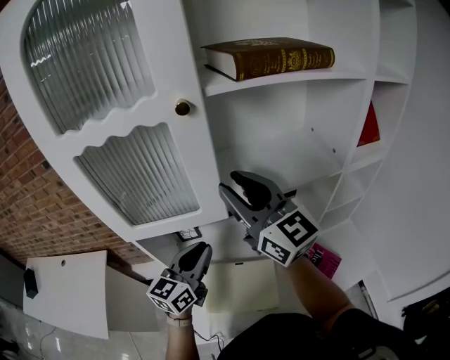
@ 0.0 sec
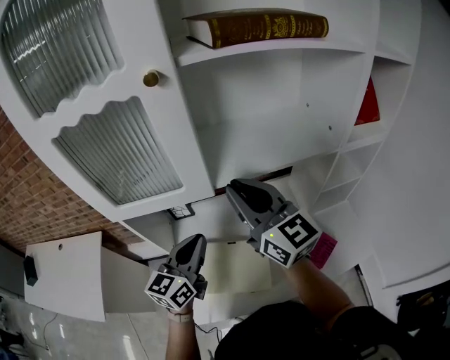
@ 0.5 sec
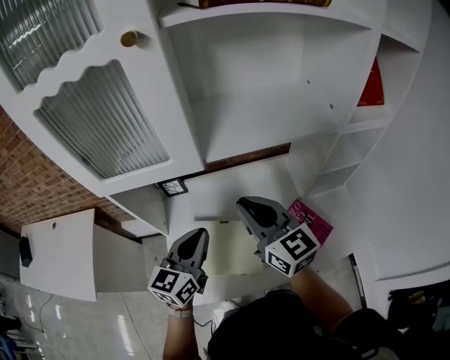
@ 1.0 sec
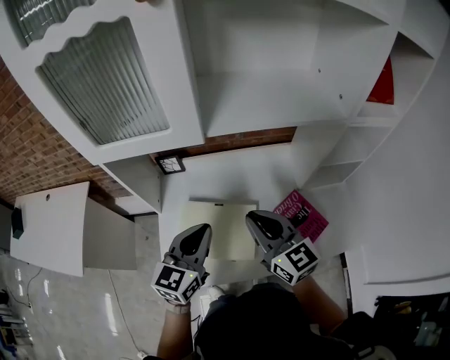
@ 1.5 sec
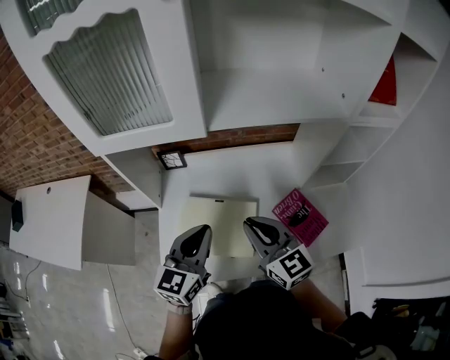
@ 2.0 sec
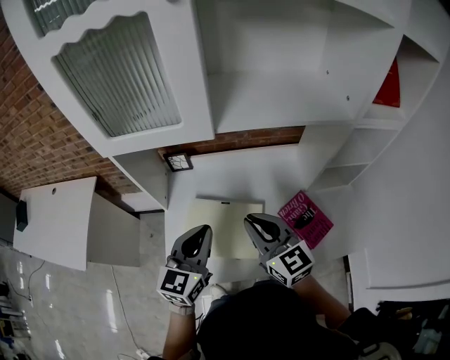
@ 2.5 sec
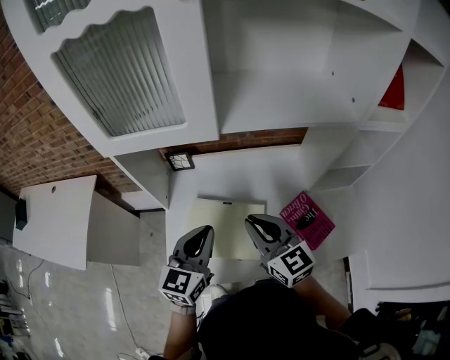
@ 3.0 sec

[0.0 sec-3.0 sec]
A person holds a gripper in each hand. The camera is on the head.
0.0 sec to 1.5 sec: The left gripper travels backward, downward and to the right by roughly 15 cm, while the right gripper heads downward and backward, covering about 30 cm, changes its angle by some 20 degrees, and closes its fingers.
1.5 sec to 3.0 sec: The grippers make only small movements.

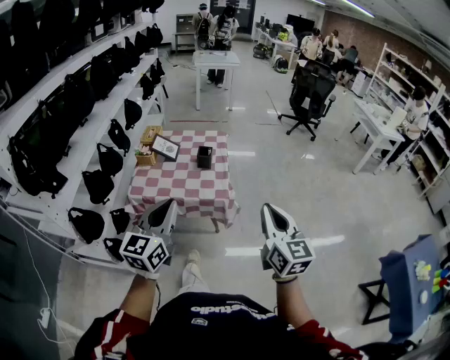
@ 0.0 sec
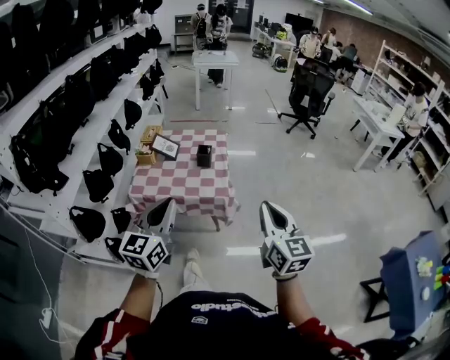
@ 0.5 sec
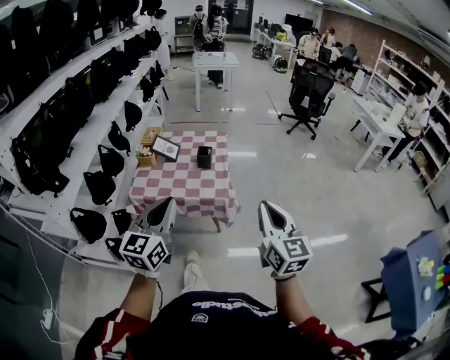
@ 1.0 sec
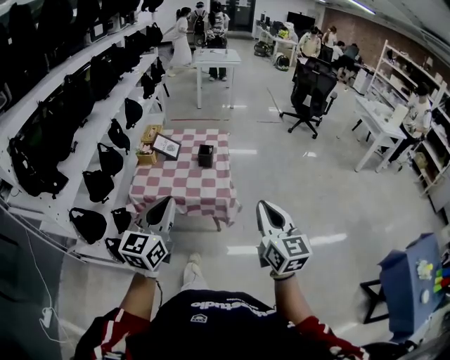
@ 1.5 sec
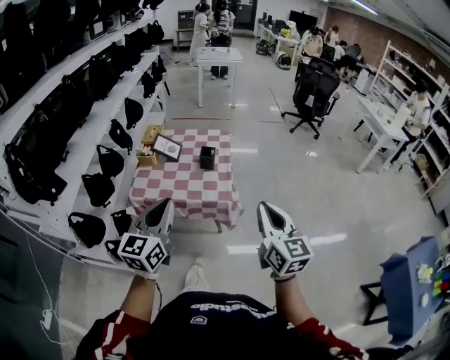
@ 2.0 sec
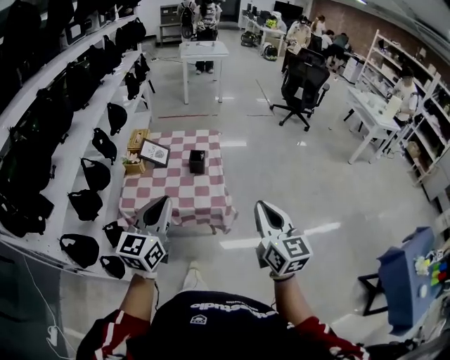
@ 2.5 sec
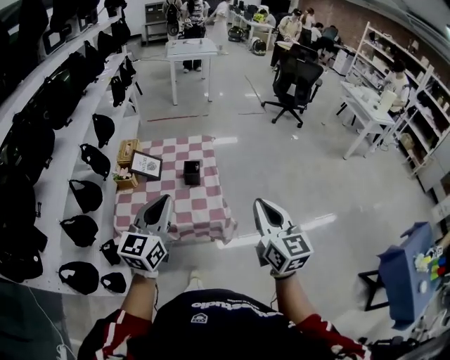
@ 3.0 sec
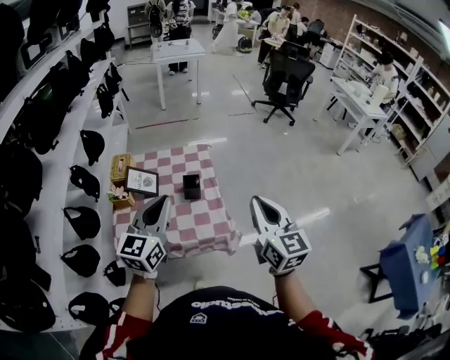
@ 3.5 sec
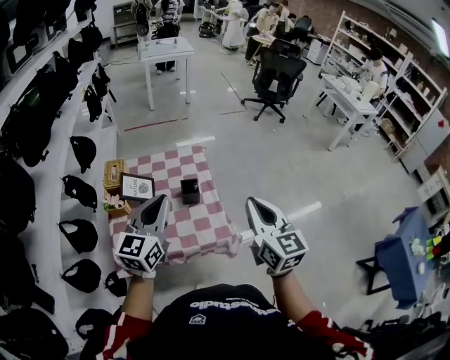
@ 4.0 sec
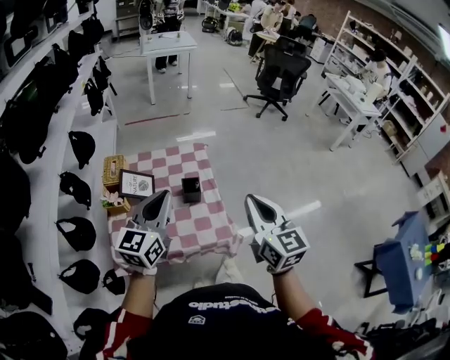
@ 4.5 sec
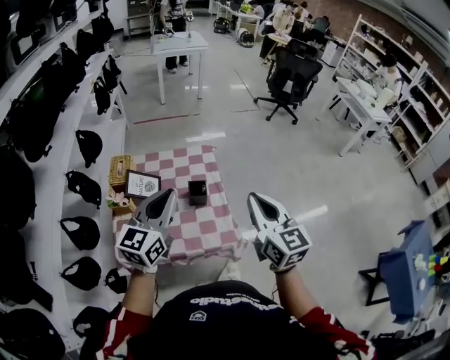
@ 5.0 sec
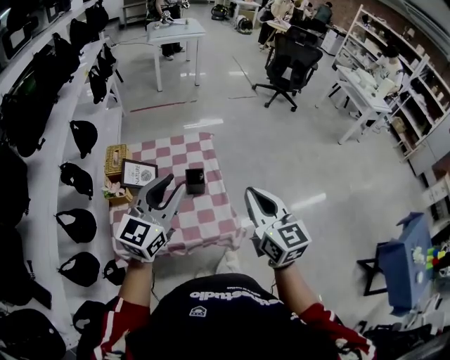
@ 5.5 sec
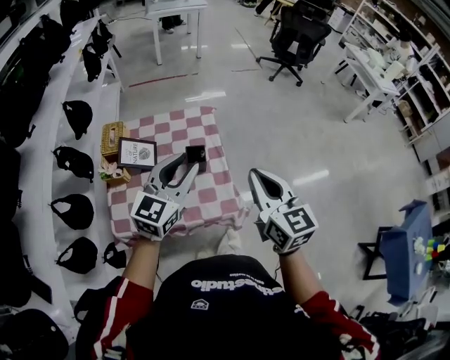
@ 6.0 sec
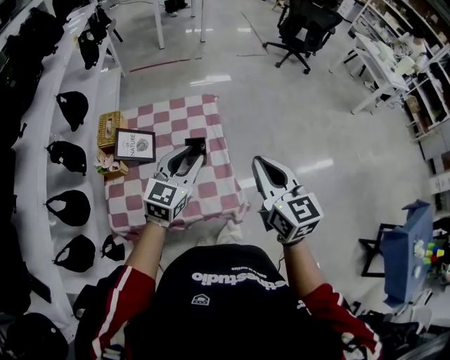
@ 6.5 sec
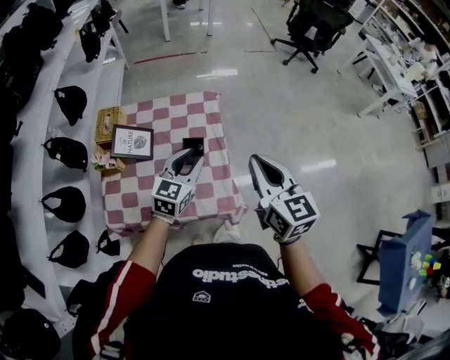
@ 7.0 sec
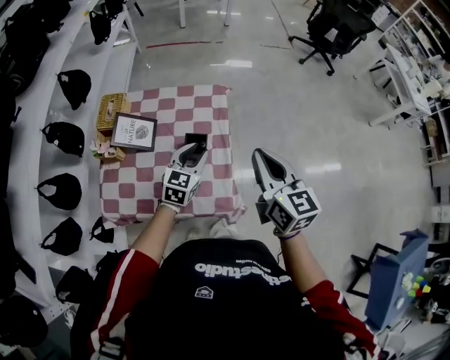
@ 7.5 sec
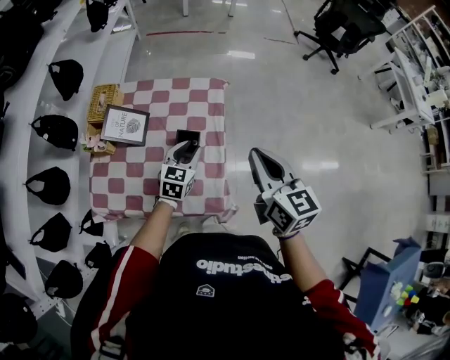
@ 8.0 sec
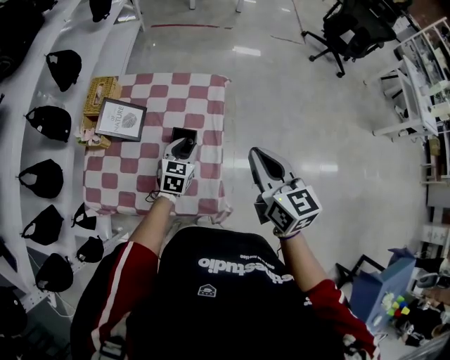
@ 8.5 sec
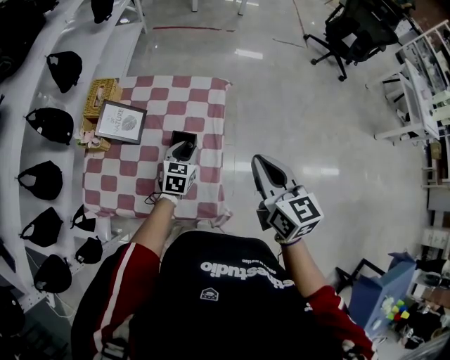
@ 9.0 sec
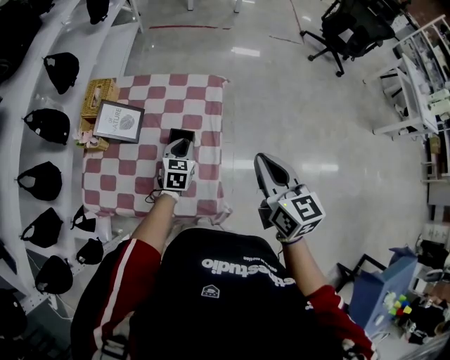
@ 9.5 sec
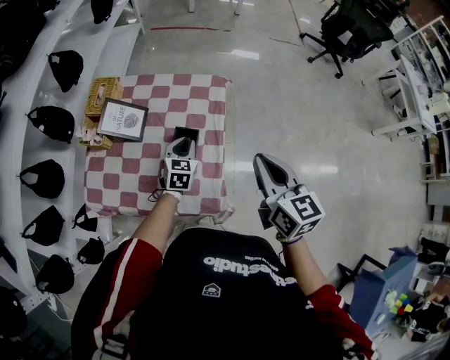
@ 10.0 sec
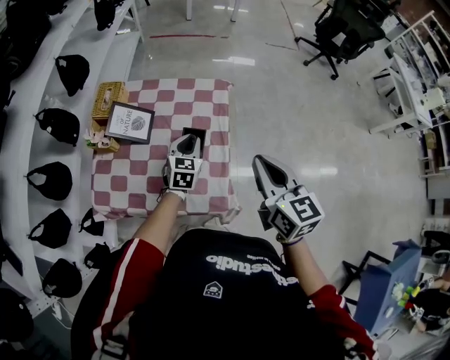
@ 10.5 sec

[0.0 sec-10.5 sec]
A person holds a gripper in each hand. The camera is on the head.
0.0 sec to 2.0 sec: There are only small adjustments of the grippers.
2.0 sec to 4.0 sec: Both grippers travel together forward, about 30 cm.
4.0 sec to 6.5 sec: The right gripper is displaced forward and downward by roughly 10 cm. Meanwhile the left gripper travels forward, downward and to the right by some 20 cm, and opens up.
6.5 sec to 8.5 sec: The right gripper goes some 15 cm forward and downward; the left gripper is displaced downward and forward by some 25 cm, and swivels some 30 degrees.
8.5 sec to 10.5 sec: The right gripper moves some 5 cm.

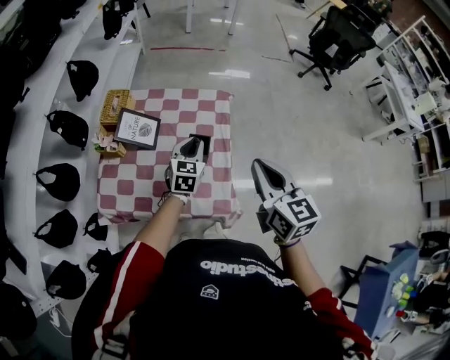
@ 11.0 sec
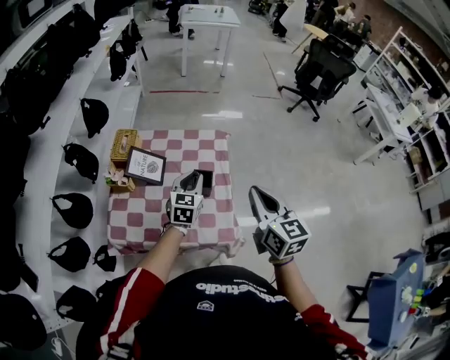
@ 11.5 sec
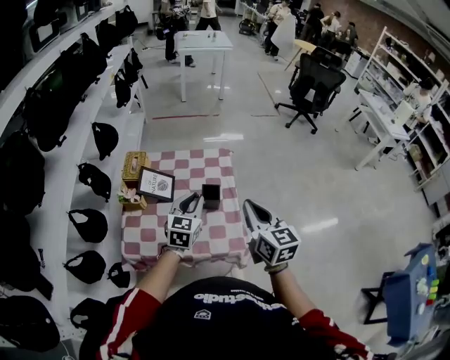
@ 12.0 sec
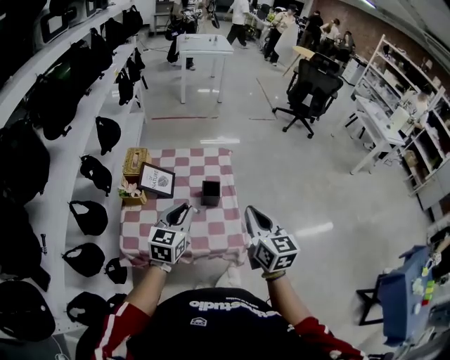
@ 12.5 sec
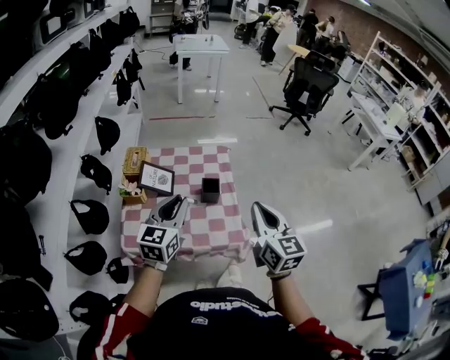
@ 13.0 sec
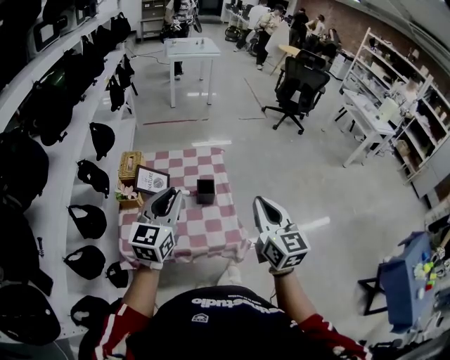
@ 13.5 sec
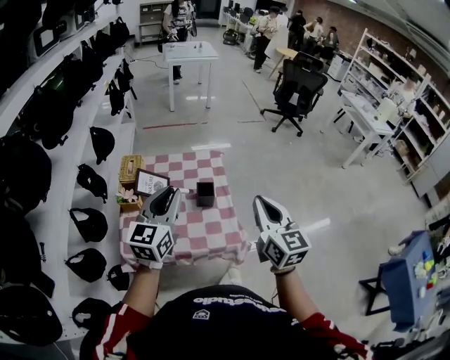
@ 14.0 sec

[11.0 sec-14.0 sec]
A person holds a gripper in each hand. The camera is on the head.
11.0 sec to 12.5 sec: The right gripper moves backward and to the left, about 10 cm; the left gripper shifts about 25 cm backward, upward and to the left.
12.5 sec to 14.0 sec: The left gripper moves upward, some 15 cm. Meanwhile the right gripper travels upward by some 5 cm.

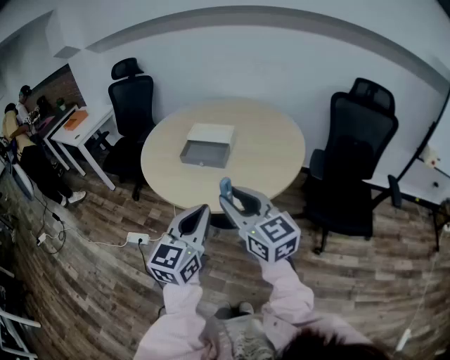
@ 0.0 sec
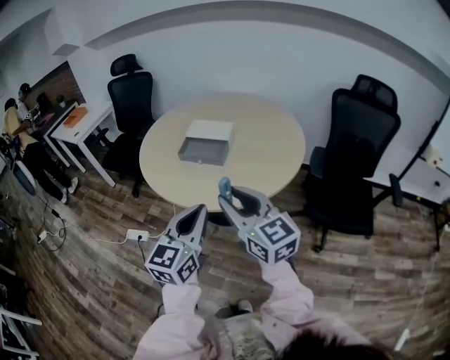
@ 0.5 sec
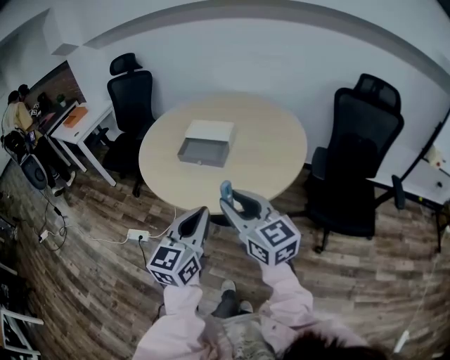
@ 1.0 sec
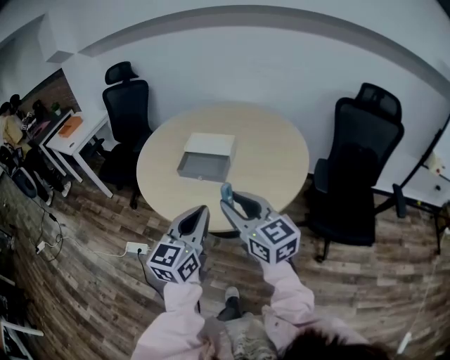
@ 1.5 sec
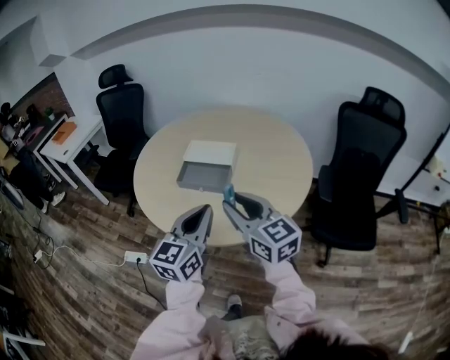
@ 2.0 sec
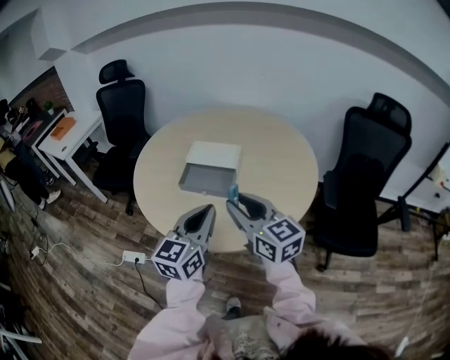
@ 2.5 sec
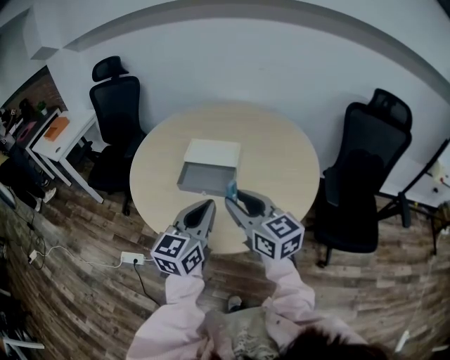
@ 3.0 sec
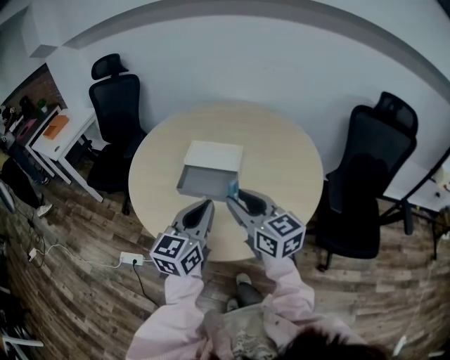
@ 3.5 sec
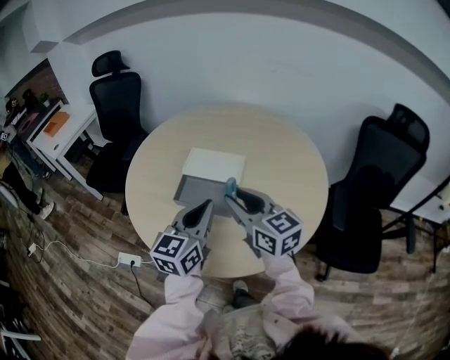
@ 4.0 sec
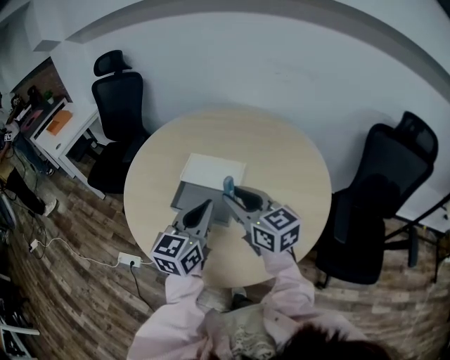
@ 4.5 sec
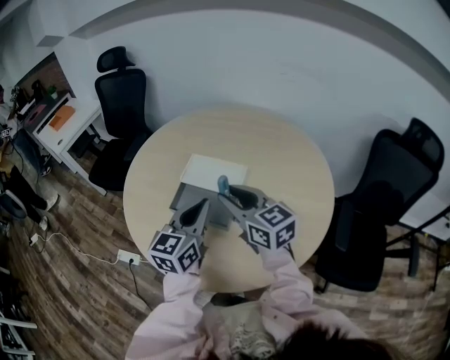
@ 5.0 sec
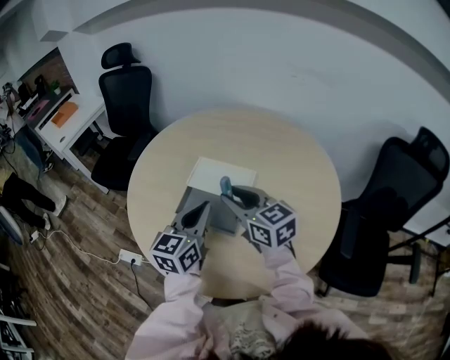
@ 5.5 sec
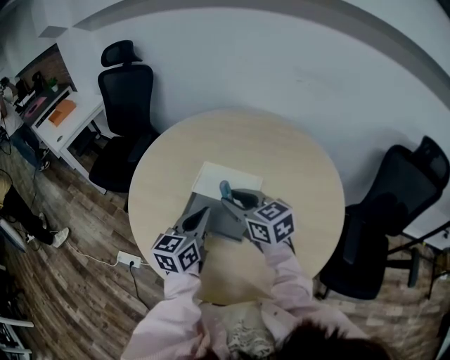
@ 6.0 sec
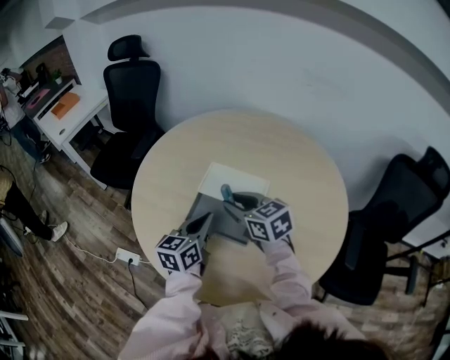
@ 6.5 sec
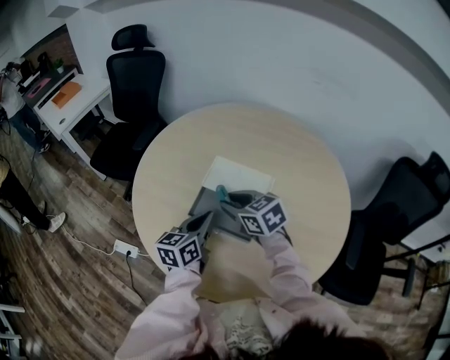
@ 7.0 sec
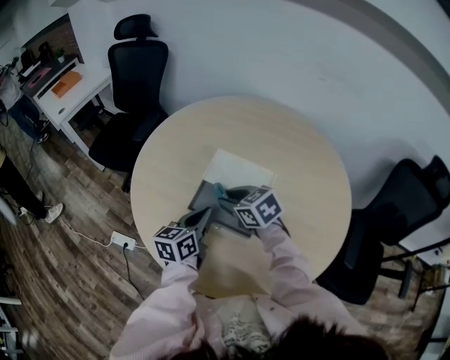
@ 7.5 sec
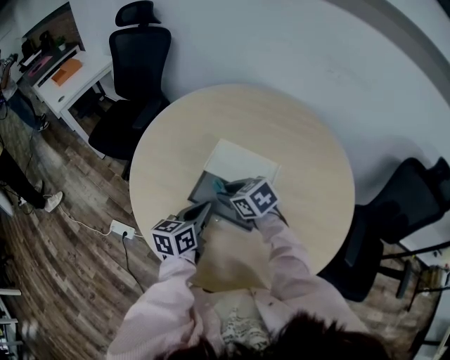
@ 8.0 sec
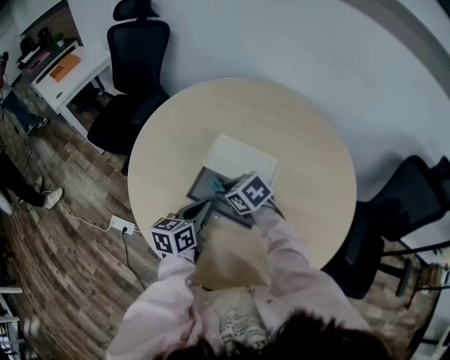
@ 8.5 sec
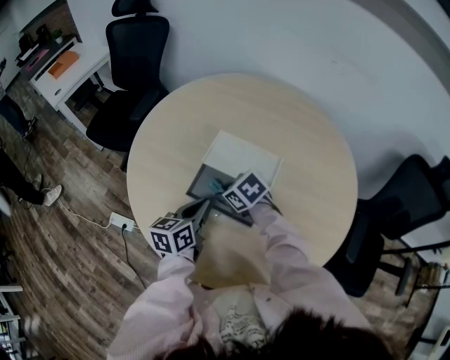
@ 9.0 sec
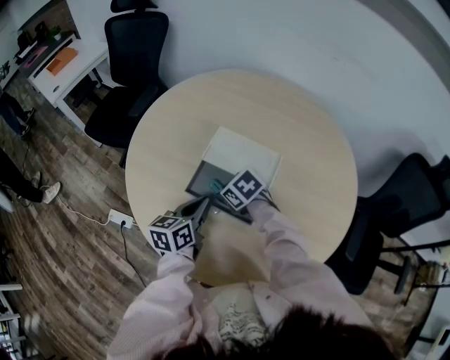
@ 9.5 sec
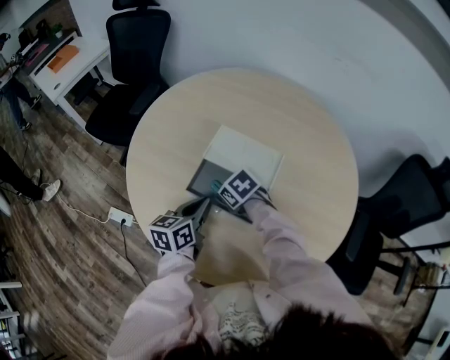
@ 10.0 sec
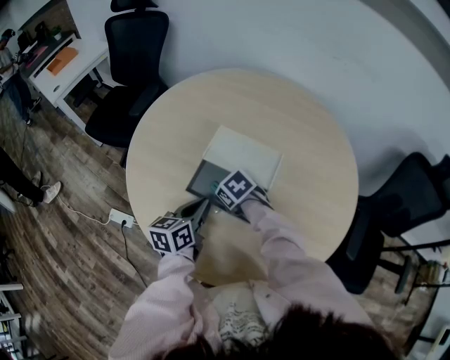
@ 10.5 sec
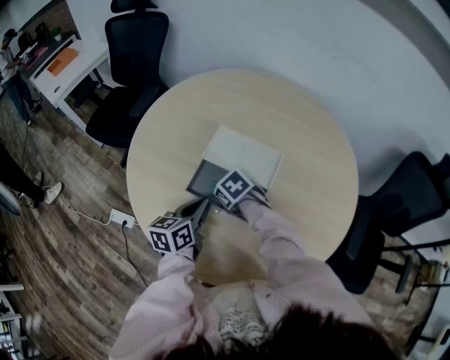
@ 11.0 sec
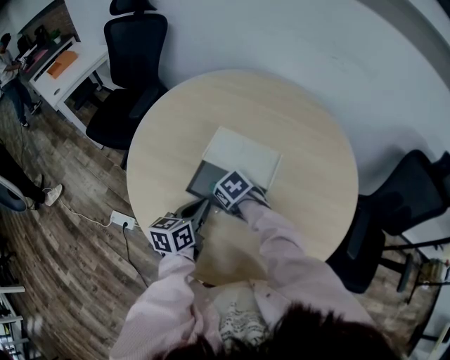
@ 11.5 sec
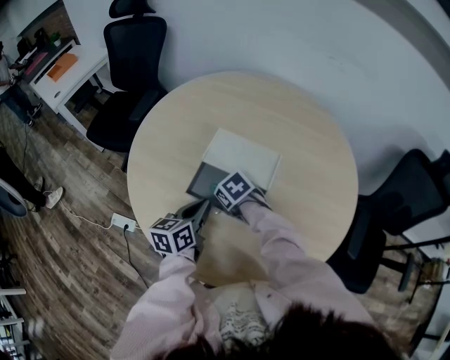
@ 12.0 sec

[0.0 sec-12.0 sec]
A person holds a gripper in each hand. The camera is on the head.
0.0 sec to 2.0 sec: Both grippers travel together forward, roughly 15 cm.
2.0 sec to 4.0 sec: The grippers both shift forward by about 15 cm.
4.0 sec to 6.0 sec: The right gripper is displaced forward by some 15 cm; the left gripper shifts roughly 15 cm forward and downward.
6.0 sec to 8.0 sec: The left gripper shifts roughly 10 cm downward, while the right gripper goes approximately 15 cm downward and to the left, and rotates approximately 30 degrees.
8.0 sec to 10.0 sec: The right gripper travels downward by about 10 cm, and changes its angle by about 20 degrees.
10.0 sec to 12.0 sec: The grippers stay close to where they were, moving slightly.
